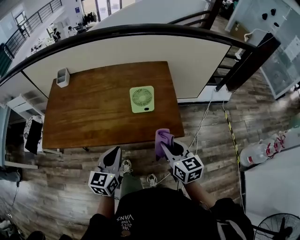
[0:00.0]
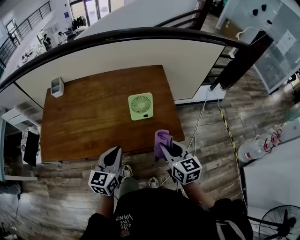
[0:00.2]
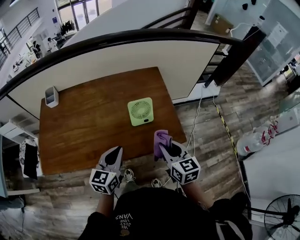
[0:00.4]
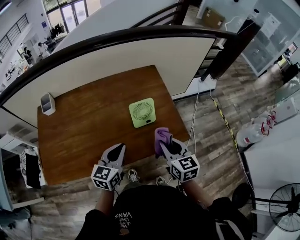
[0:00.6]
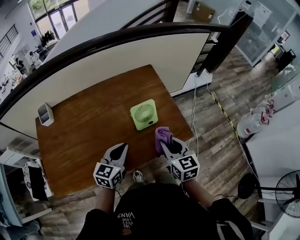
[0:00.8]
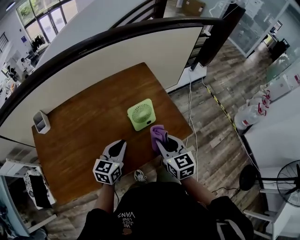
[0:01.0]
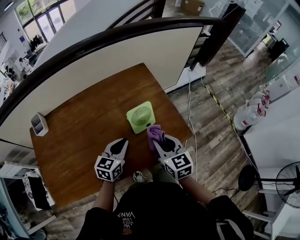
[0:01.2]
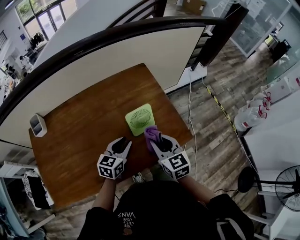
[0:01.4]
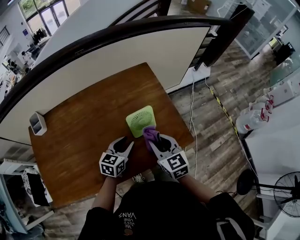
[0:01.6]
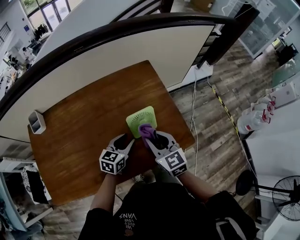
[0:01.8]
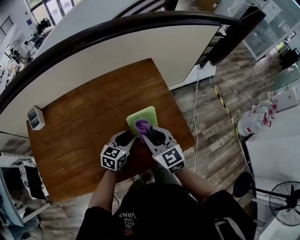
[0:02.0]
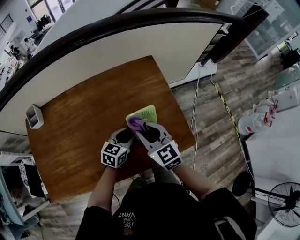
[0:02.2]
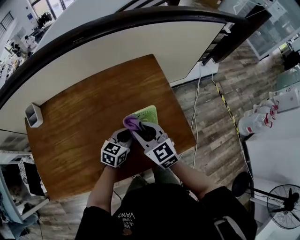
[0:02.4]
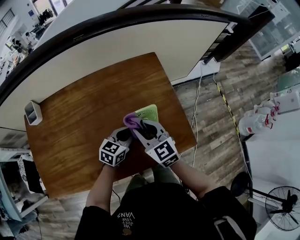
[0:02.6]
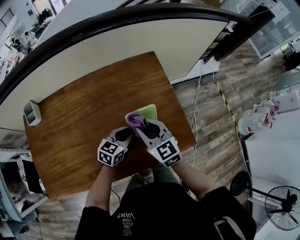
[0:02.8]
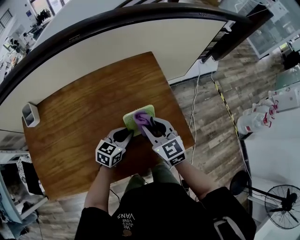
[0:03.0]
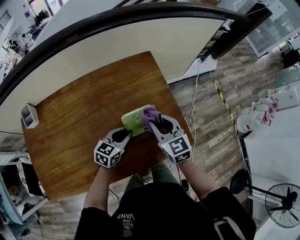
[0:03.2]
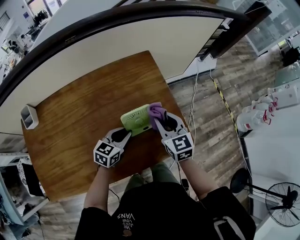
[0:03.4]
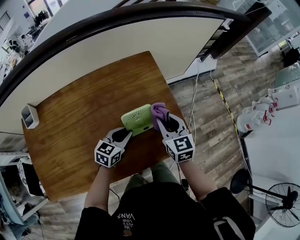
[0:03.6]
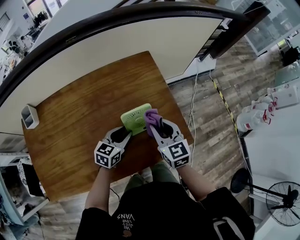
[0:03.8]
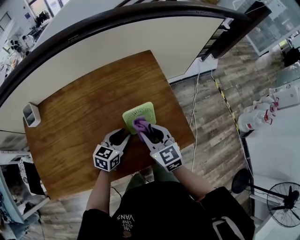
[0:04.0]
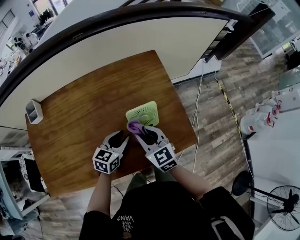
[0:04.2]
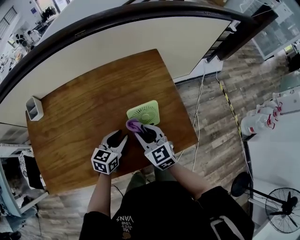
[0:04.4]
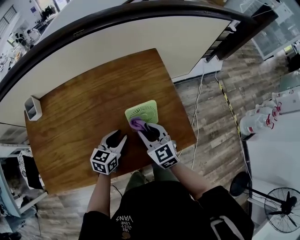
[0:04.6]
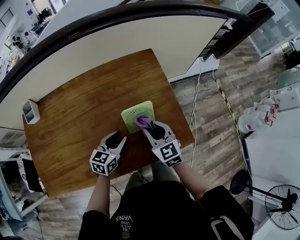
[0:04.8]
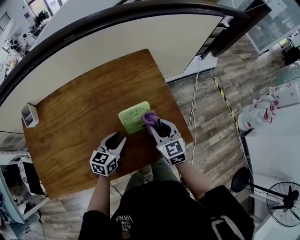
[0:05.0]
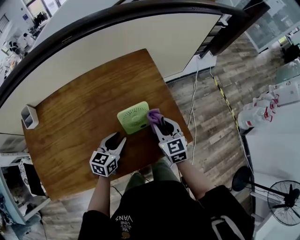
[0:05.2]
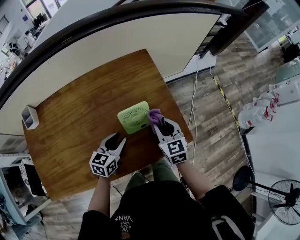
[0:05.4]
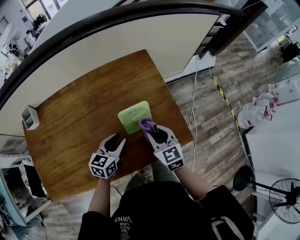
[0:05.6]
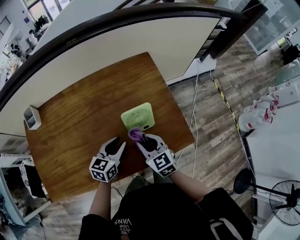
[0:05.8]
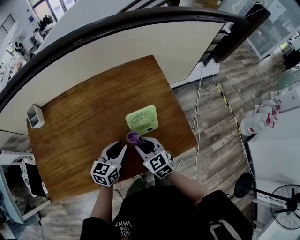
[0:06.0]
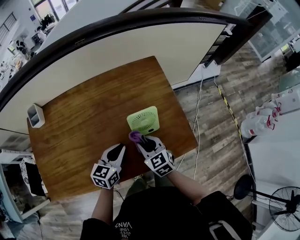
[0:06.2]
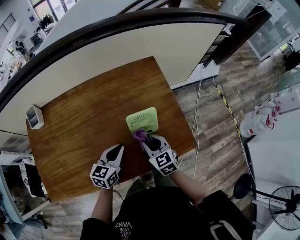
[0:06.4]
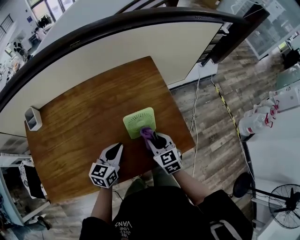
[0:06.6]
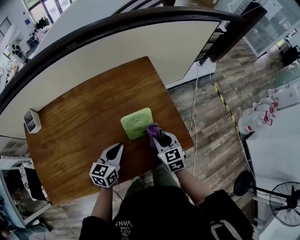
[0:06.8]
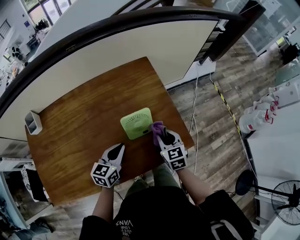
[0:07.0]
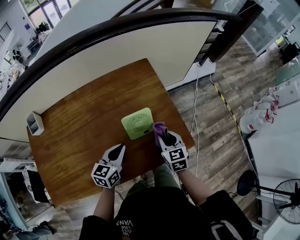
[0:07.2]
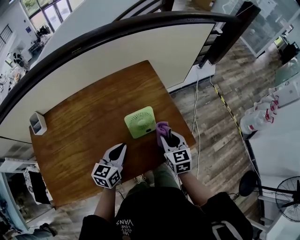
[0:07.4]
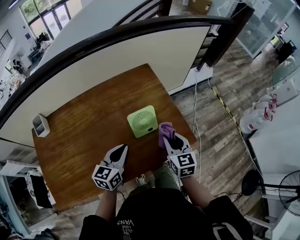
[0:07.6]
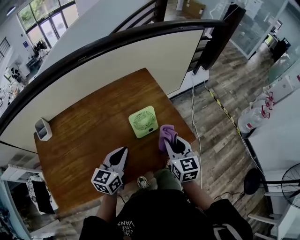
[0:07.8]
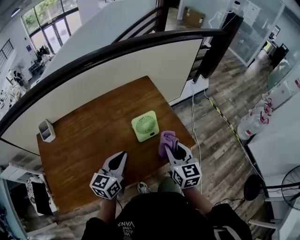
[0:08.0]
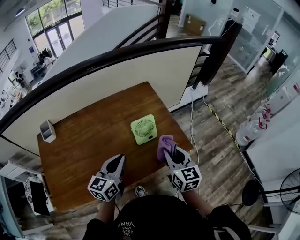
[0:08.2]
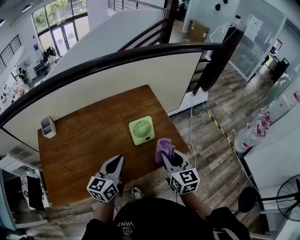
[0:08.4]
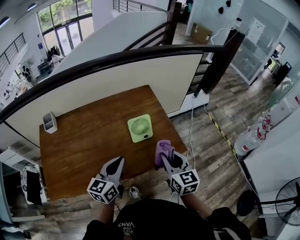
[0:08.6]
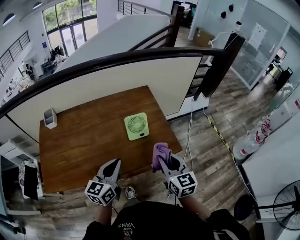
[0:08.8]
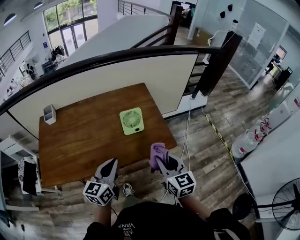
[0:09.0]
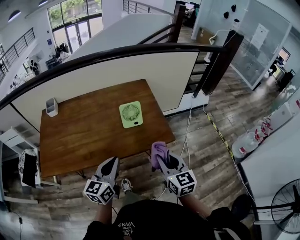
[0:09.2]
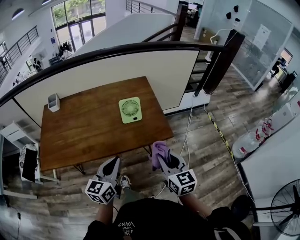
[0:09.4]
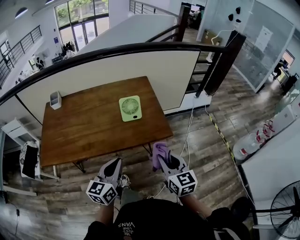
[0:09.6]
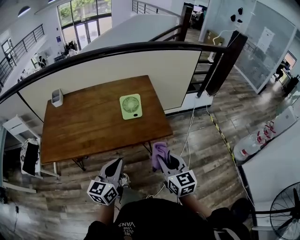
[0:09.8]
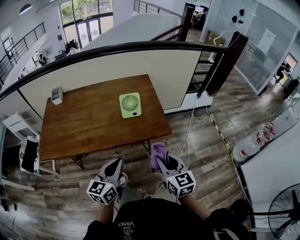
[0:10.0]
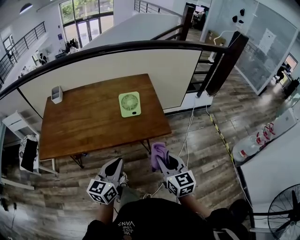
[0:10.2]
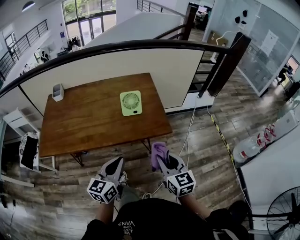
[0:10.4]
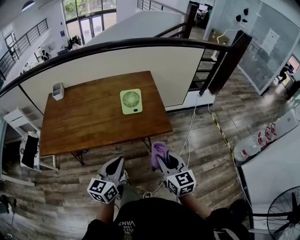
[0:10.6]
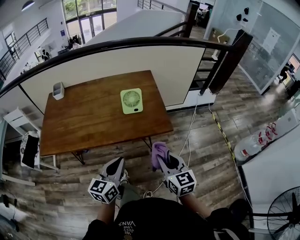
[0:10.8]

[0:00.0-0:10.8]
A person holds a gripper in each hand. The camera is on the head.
0:00.0 to 0:01.6: The left gripper ends up about 25 cm from where it was, changes its angle by approximately 40 degrees, and opens up, while the right gripper moves about 20 cm.
0:01.6 to 0:03.0: The right gripper travels forward by about 10 cm. The left gripper ends up approximately 5 cm from where it was.
0:03.0 to 0:04.6: The right gripper goes to the right and returns, about 5 cm each way. The left gripper shifts by roughly 5 cm.
0:04.6 to 0:06.2: The right gripper reaches some 10 cm to the right, then returns.
0:06.2 to 0:07.8: The right gripper heads upward and to the right, covering some 15 cm, and changes its angle by approximately 40 degrees; the left gripper heads upward, covering about 10 cm.
0:07.8 to 0:09.2: The two grippers go roughly 20 cm backward and to the right.
0:09.2 to 0:10.8: The left gripper is displaced backward and to the right by about 10 cm. Meanwhile the right gripper travels backward by about 5 cm.

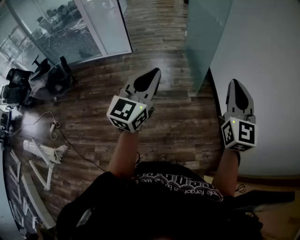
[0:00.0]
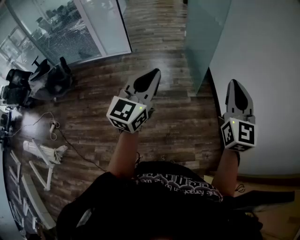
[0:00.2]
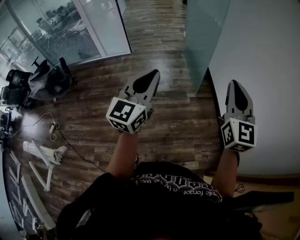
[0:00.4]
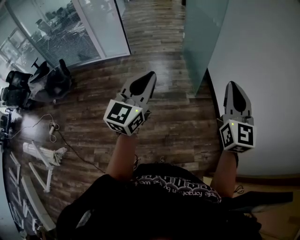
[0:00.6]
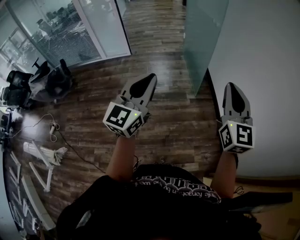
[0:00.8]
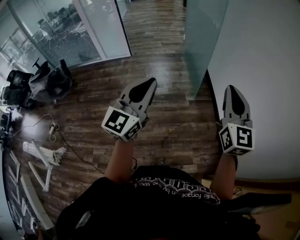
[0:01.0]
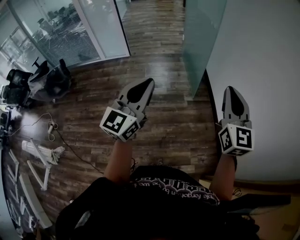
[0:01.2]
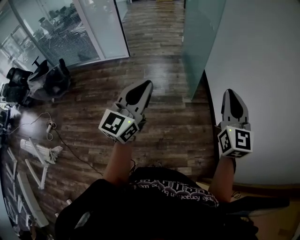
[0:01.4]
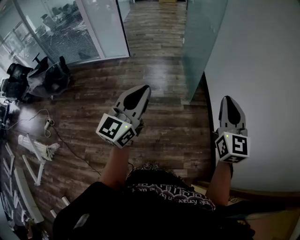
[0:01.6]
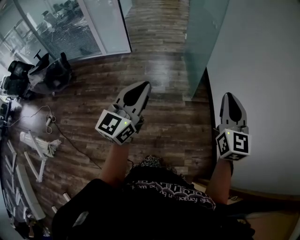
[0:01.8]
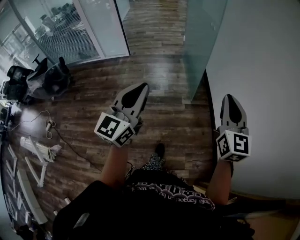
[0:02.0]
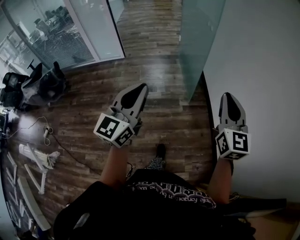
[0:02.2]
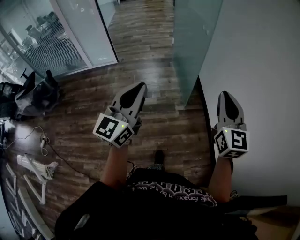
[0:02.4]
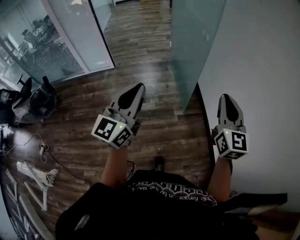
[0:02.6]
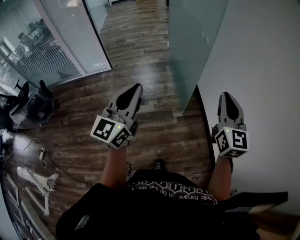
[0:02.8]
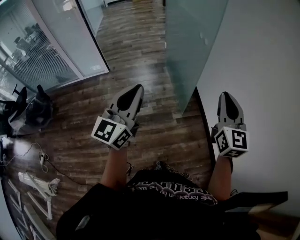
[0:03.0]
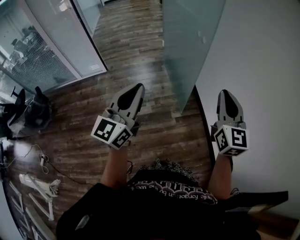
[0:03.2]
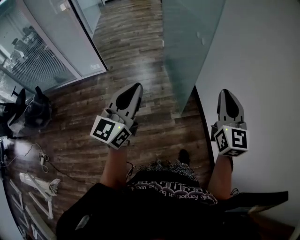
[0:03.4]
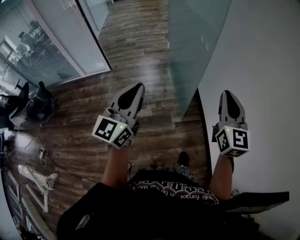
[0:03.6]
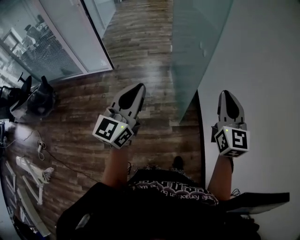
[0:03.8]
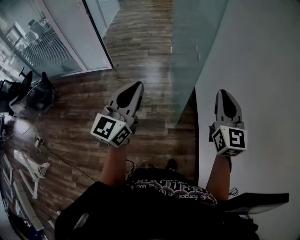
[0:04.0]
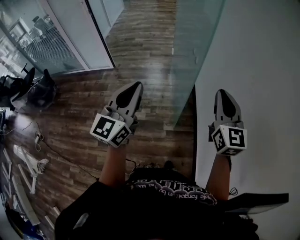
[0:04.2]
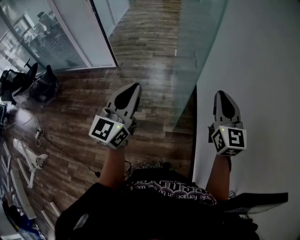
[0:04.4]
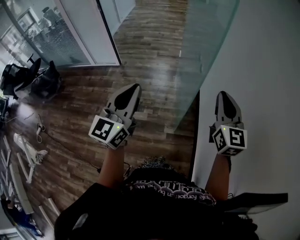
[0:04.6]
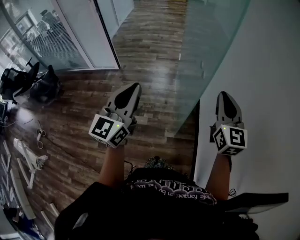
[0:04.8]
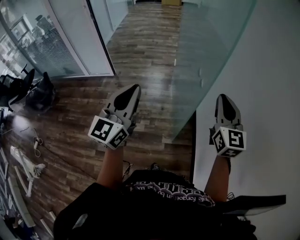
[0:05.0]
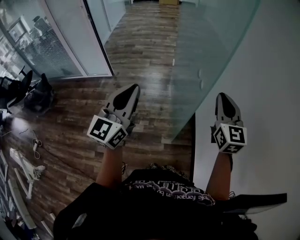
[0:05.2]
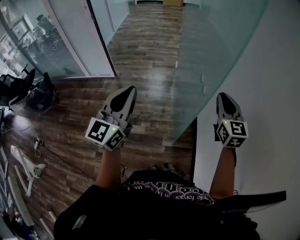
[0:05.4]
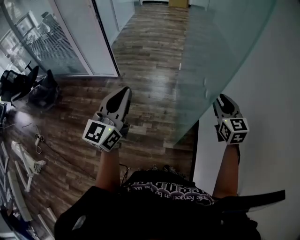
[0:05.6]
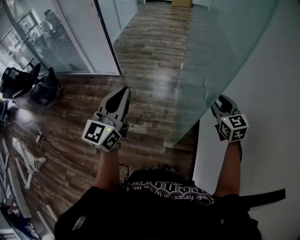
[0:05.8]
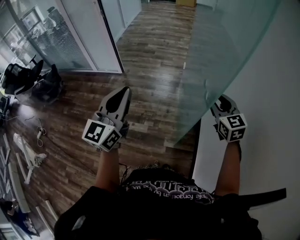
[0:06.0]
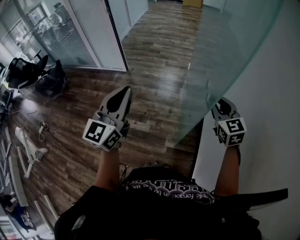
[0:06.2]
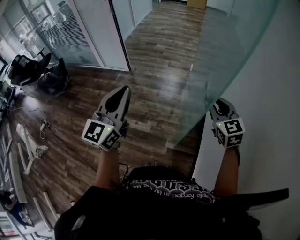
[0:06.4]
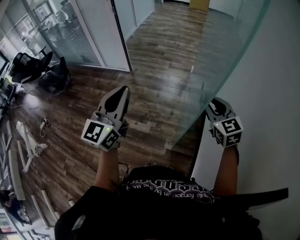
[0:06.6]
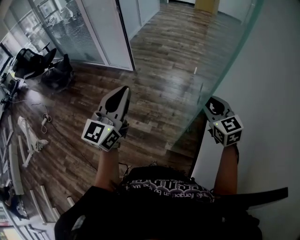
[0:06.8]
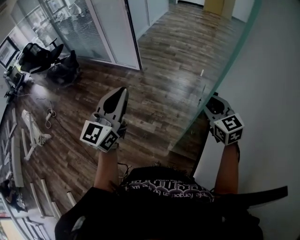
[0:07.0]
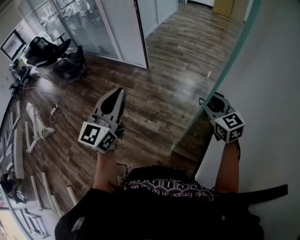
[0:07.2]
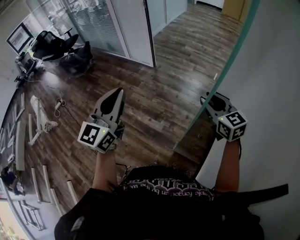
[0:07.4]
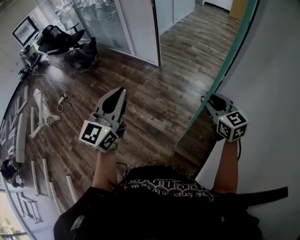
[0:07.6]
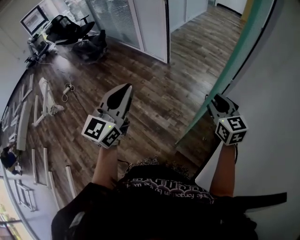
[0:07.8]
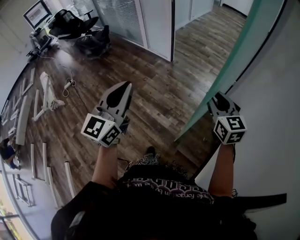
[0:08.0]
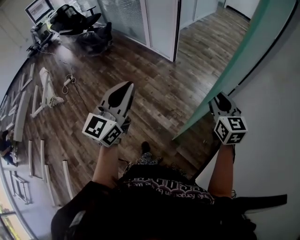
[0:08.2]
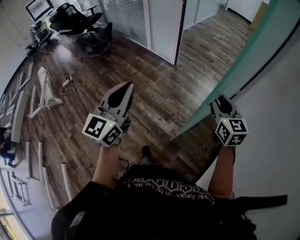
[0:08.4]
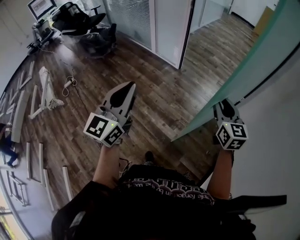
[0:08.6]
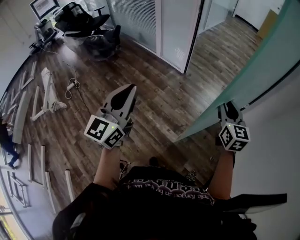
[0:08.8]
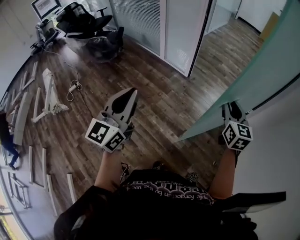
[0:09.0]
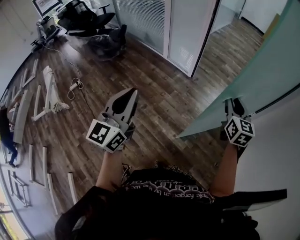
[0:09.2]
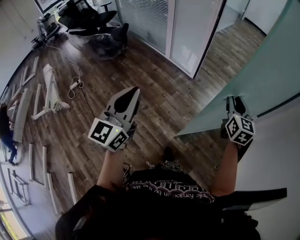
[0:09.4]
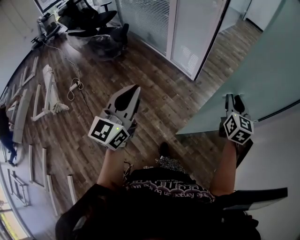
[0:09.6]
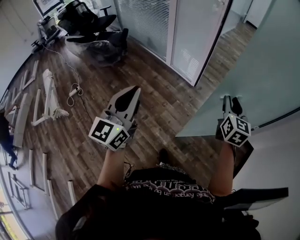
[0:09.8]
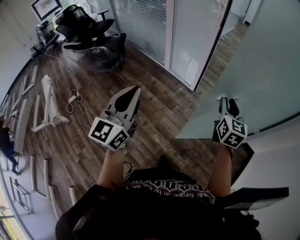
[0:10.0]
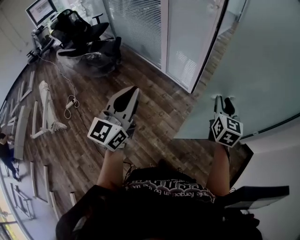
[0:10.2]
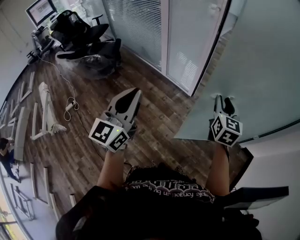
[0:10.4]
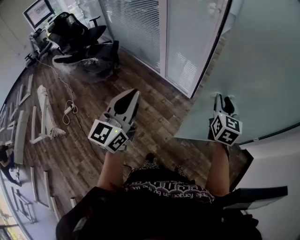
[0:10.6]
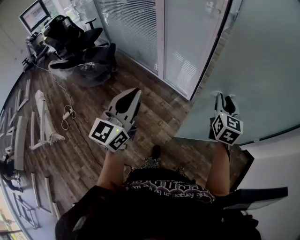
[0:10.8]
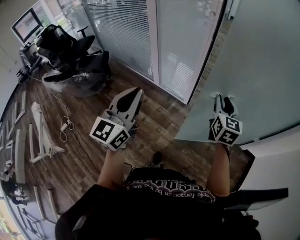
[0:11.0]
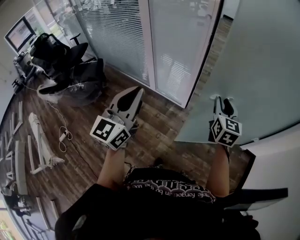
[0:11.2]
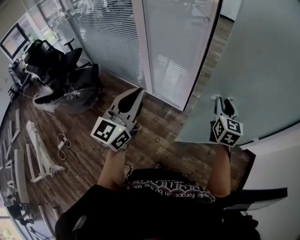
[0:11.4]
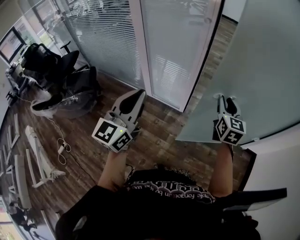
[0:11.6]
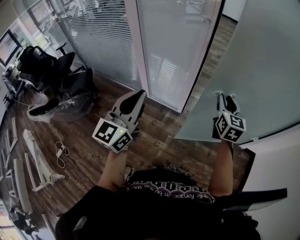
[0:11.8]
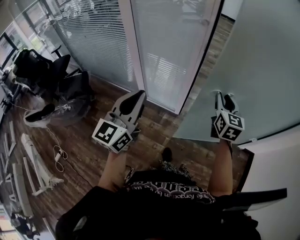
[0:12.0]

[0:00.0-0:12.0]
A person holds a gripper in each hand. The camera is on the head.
0:00.0 to 0:01.6: The left gripper changes place by about 5 cm, while the right gripper moves to the right, about 5 cm.
0:01.6 to 0:03.0: The two grippers go roughly 25 cm forward.
0:03.0 to 0:04.4: Both grippers travel together forward and to the right, about 20 cm.
0:04.4 to 0:06.0: The right gripper heads forward and downward, covering approximately 20 cm, swivels approximately 30 degrees, and opens up. Meanwhile the left gripper heads forward and to the left, covering about 10 cm.
0:06.0 to 0:07.6: The left gripper changes place by some 10 cm, and rotates approximately 20 degrees. The right gripper shifts by roughly 15 cm, and turns by about 30 degrees.
0:07.6 to 0:09.0: The left gripper heads to the left and forward, covering about 30 cm. The right gripper goes some 30 cm forward and to the left.
0:09.0 to 0:10.4: The left gripper goes roughly 30 cm forward, while the right gripper heads forward and to the left, covering approximately 30 cm.
0:10.4 to 0:12.0: Both grippers travel together forward, some 30 cm.

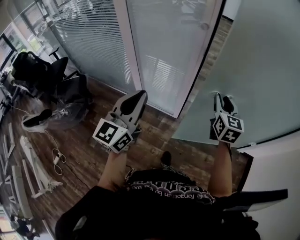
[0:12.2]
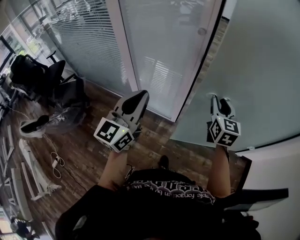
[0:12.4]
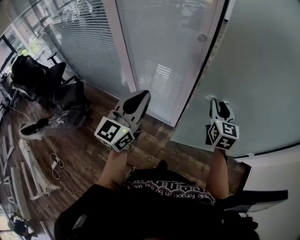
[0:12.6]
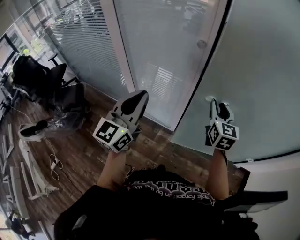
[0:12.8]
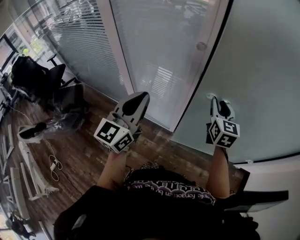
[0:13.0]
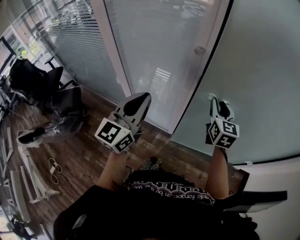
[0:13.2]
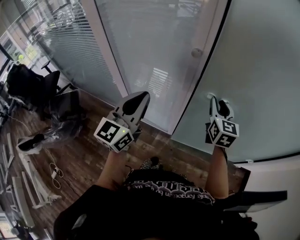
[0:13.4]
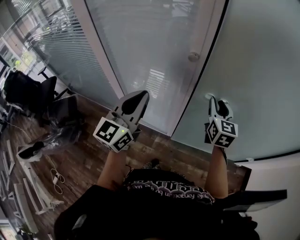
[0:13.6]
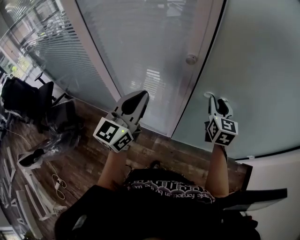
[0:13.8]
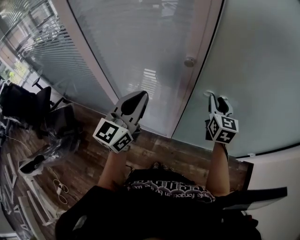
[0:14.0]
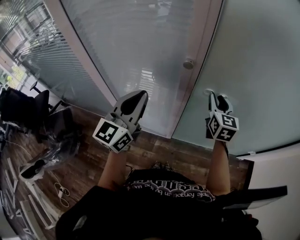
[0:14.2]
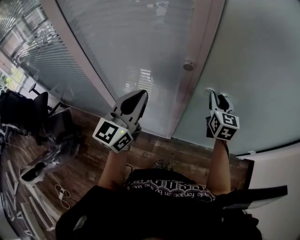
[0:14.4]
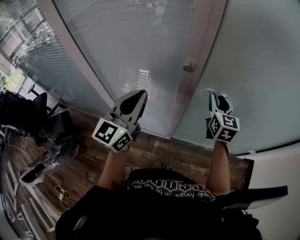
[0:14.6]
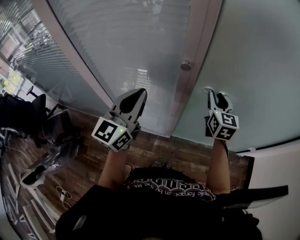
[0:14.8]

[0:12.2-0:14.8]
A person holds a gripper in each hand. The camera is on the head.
0:12.2 to 0:13.4: The two grippers go approximately 20 cm forward.
0:13.4 to 0:14.8: Both grippers move forward, approximately 10 cm.
